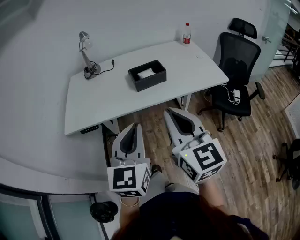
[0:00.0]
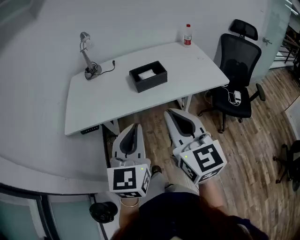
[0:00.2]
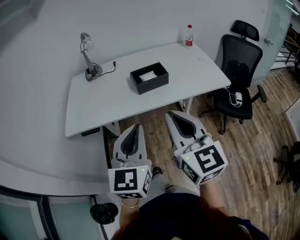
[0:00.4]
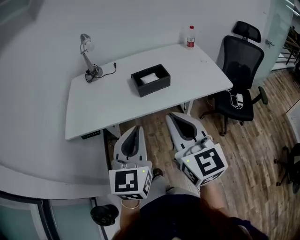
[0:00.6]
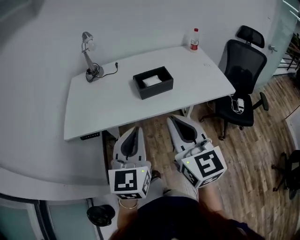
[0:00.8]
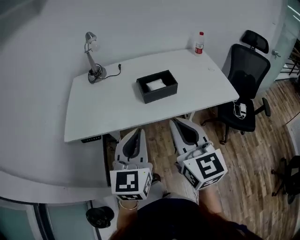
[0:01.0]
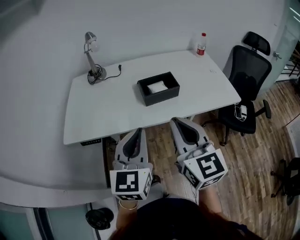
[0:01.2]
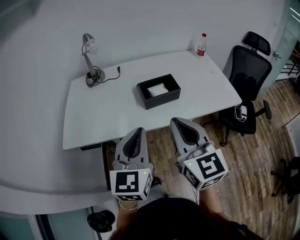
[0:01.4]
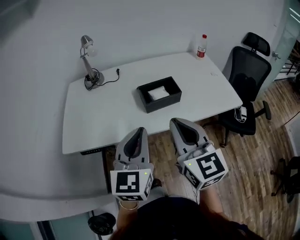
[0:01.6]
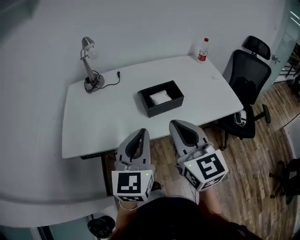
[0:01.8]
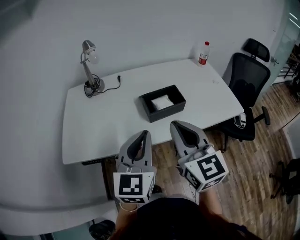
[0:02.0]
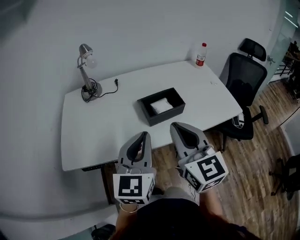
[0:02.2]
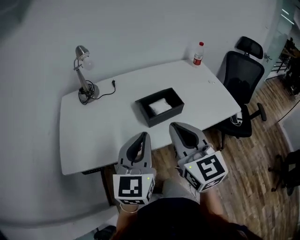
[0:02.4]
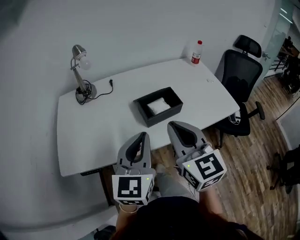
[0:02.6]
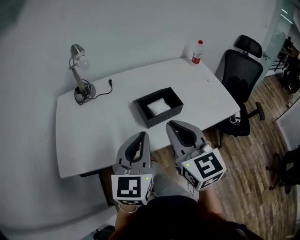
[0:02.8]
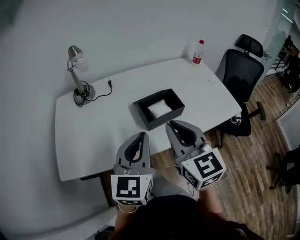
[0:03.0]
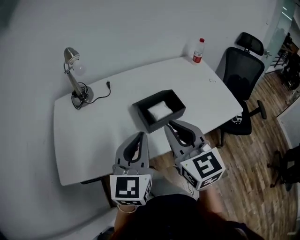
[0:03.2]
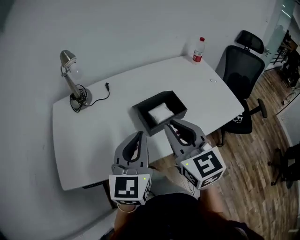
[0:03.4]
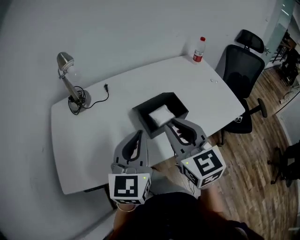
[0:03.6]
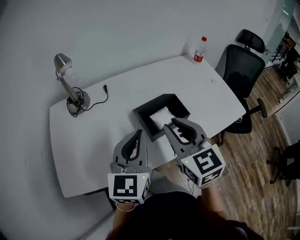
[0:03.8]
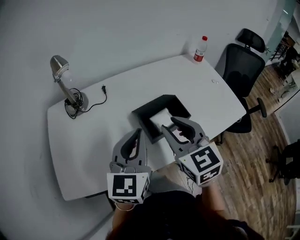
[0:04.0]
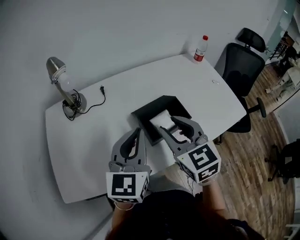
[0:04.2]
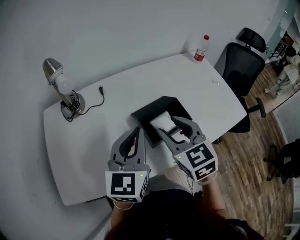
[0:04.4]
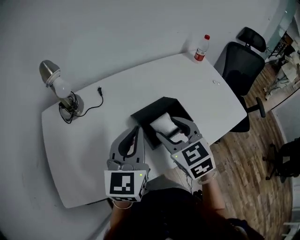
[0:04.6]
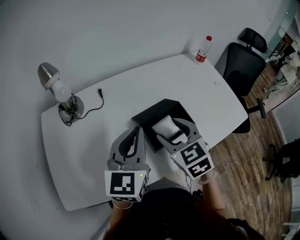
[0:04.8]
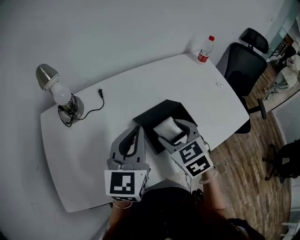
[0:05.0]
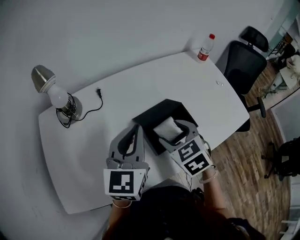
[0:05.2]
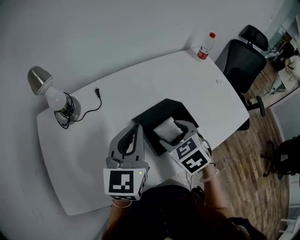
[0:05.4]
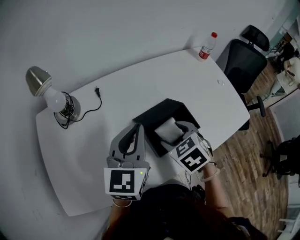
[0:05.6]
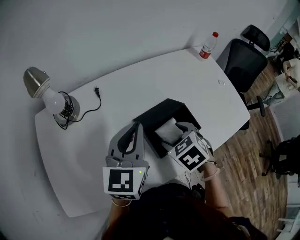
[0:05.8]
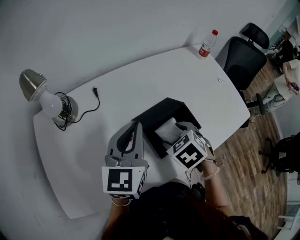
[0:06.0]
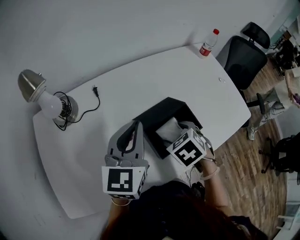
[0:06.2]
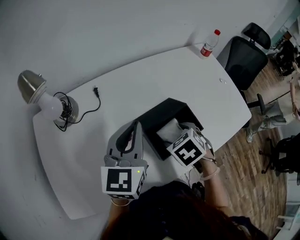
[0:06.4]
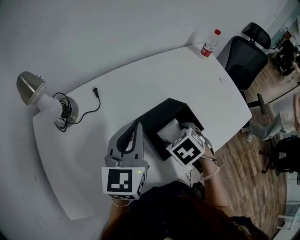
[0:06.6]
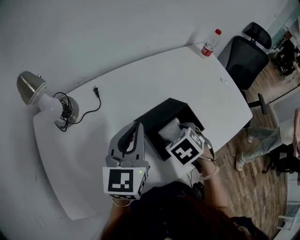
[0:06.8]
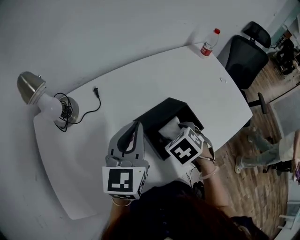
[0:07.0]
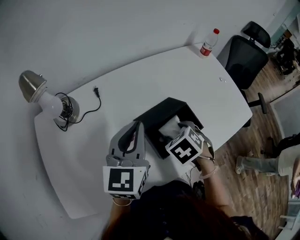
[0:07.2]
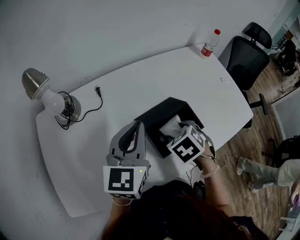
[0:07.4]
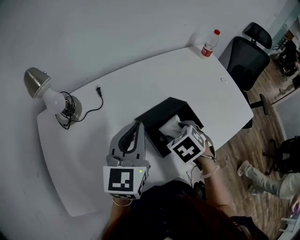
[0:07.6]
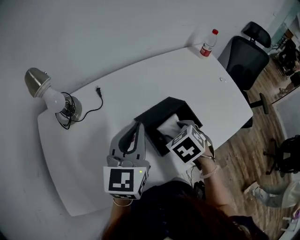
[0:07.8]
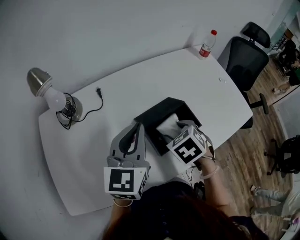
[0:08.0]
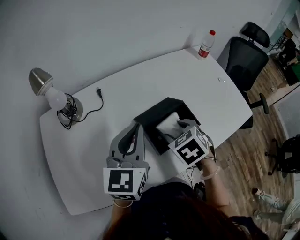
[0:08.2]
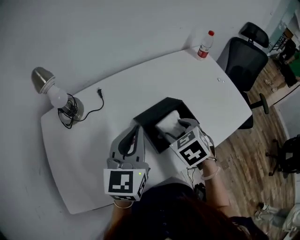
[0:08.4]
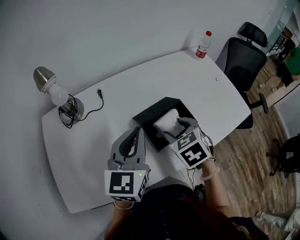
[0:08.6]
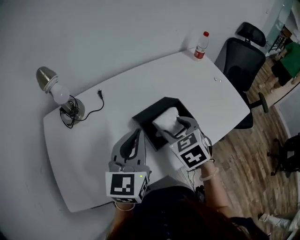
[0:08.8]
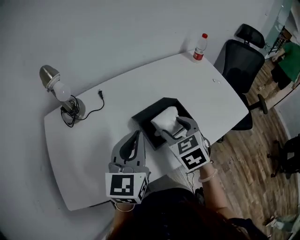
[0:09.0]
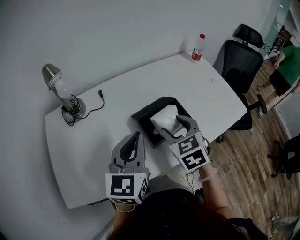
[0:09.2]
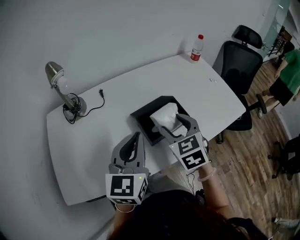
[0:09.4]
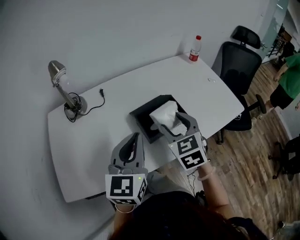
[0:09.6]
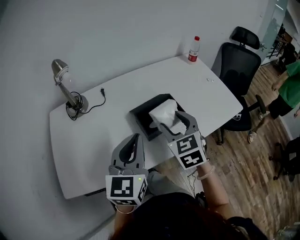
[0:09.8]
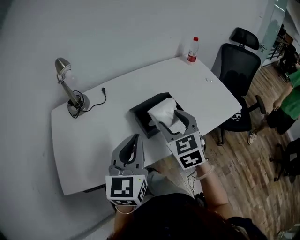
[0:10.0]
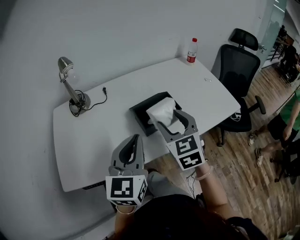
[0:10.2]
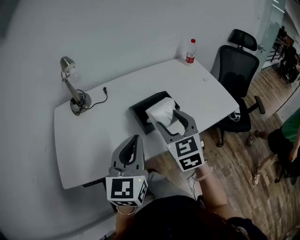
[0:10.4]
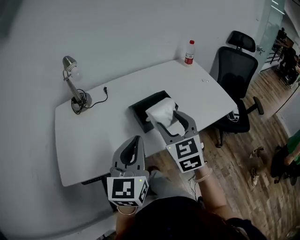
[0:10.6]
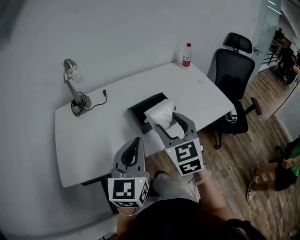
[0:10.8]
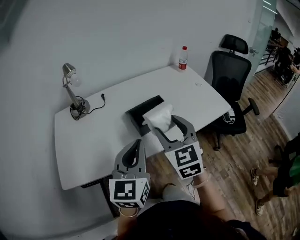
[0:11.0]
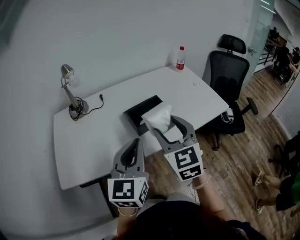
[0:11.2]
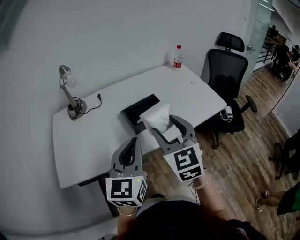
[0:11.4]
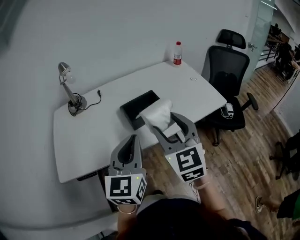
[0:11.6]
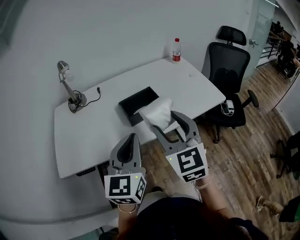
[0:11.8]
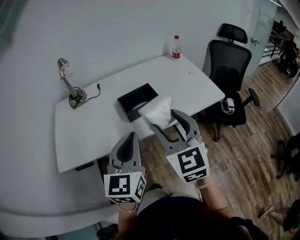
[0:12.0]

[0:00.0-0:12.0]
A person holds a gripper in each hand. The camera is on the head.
0:00.0 to 0:01.6: The two grippers go about 15 cm forward.
0:01.6 to 0:03.0: The two grippers go some 10 cm forward.
0:03.0 to 0:04.4: The left gripper travels forward by some 15 cm. Meanwhile the right gripper is displaced forward and downward by about 15 cm, and opens its fingers.
0:04.4 to 0:06.0: The right gripper shifts approximately 15 cm downward, and angles its fingers downward, by some 40 degrees. Meanwhile the left gripper moves forward, about 10 cm.
0:06.0 to 0:07.6: The grippers stay close to where they were, moving slightly.
0:07.6 to 0:09.0: The left gripper is displaced backward by about 5 cm; the right gripper travels upward by roughly 5 cm, and swivels about 30 degrees.
0:09.0 to 0:10.4: The left gripper shifts about 15 cm backward. Meanwhile the right gripper heads backward and upward, covering about 10 cm, and turns by about 20 degrees.
0:10.4 to 0:12.0: The right gripper goes roughly 15 cm backward, to the right and upward, while the left gripper shifts approximately 10 cm backward and to the right.

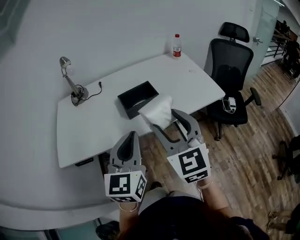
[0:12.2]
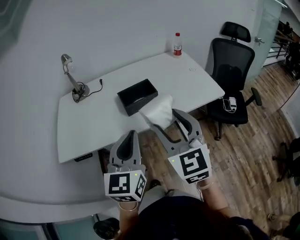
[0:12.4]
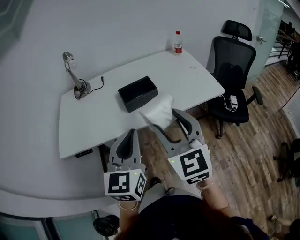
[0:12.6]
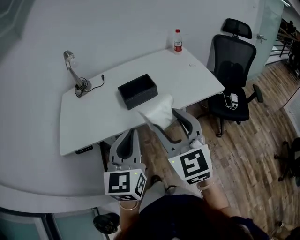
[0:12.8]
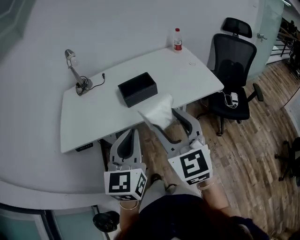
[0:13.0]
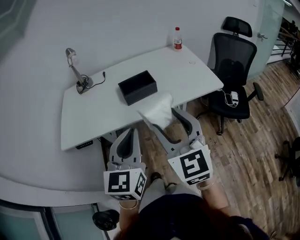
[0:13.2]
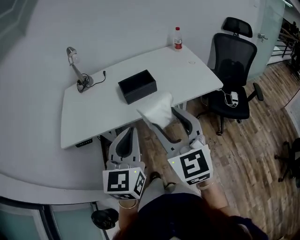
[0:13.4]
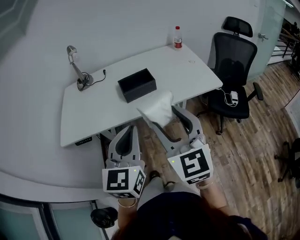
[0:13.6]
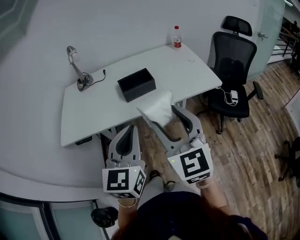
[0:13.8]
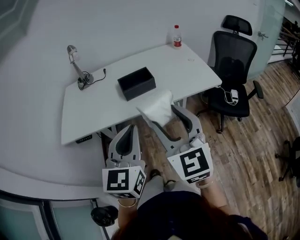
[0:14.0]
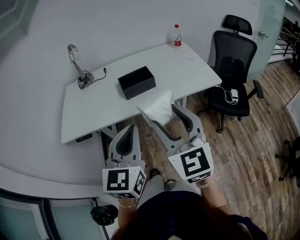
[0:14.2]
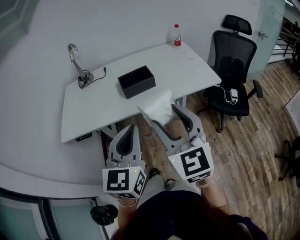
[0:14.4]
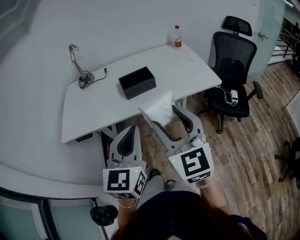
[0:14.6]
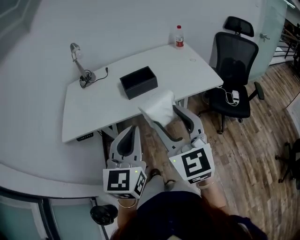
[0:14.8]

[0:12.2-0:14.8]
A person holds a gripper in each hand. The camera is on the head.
0:12.2 to 0:13.4: The two grippers go roughly 10 cm backward.
0:13.4 to 0:14.8: The grippers move only a little.

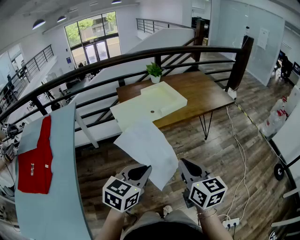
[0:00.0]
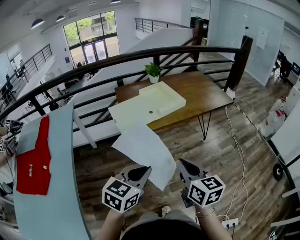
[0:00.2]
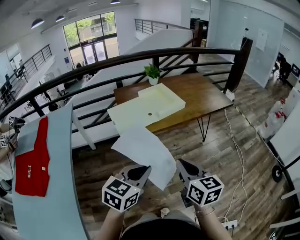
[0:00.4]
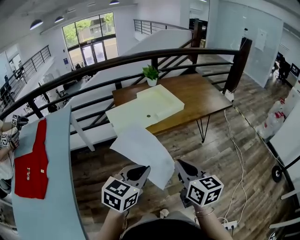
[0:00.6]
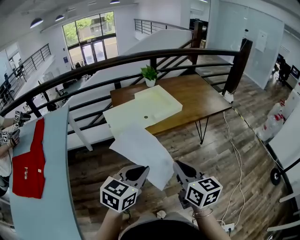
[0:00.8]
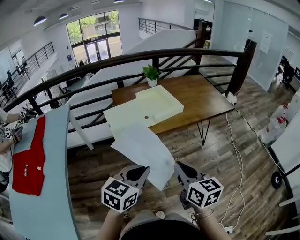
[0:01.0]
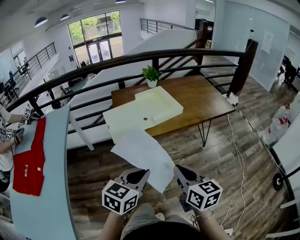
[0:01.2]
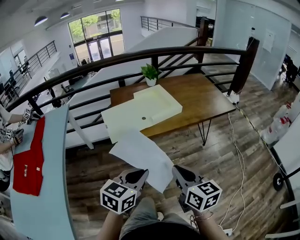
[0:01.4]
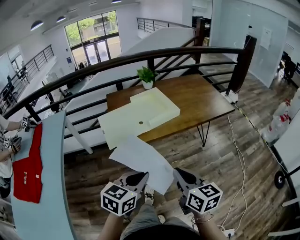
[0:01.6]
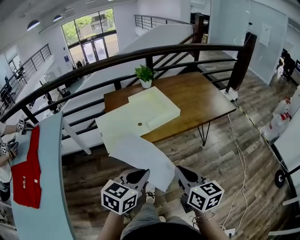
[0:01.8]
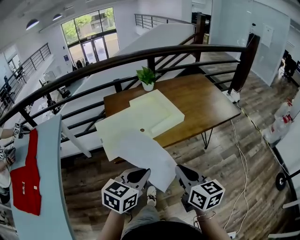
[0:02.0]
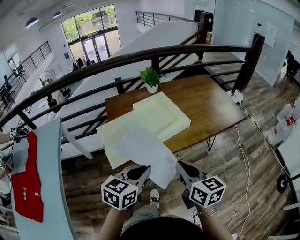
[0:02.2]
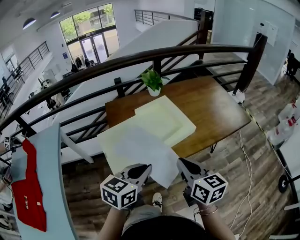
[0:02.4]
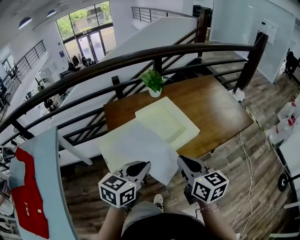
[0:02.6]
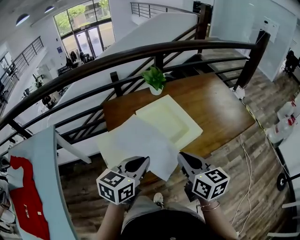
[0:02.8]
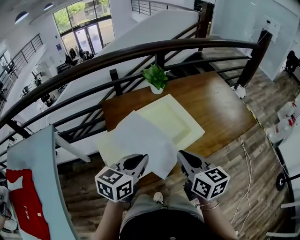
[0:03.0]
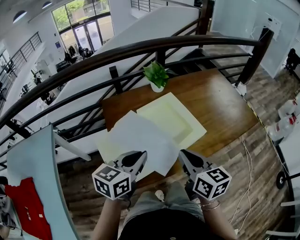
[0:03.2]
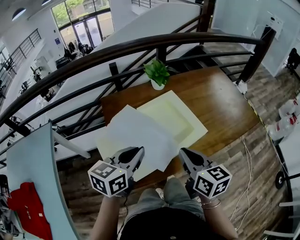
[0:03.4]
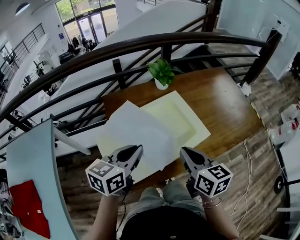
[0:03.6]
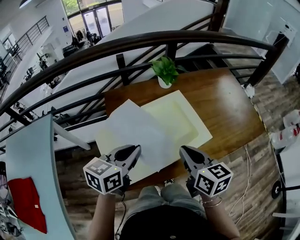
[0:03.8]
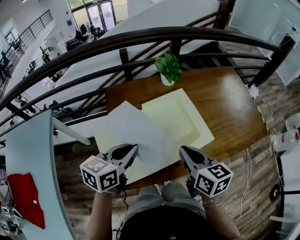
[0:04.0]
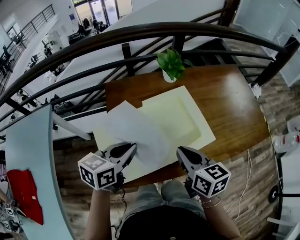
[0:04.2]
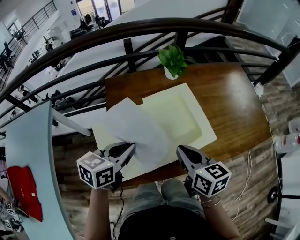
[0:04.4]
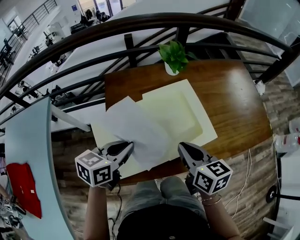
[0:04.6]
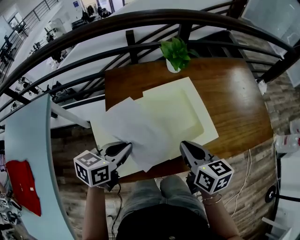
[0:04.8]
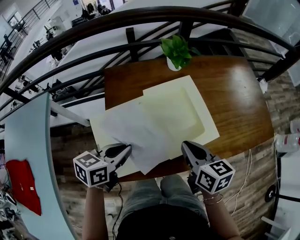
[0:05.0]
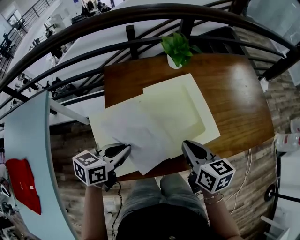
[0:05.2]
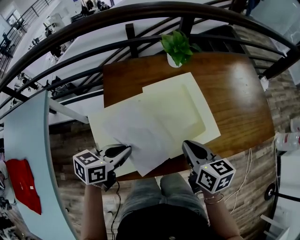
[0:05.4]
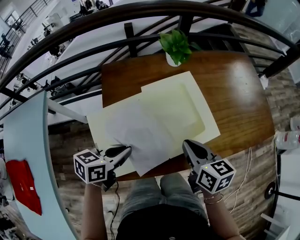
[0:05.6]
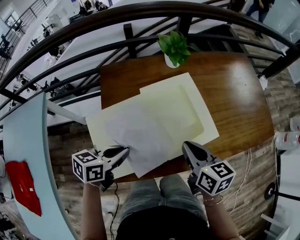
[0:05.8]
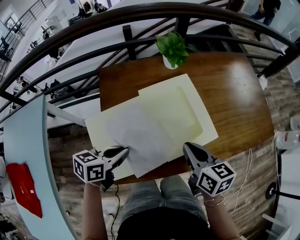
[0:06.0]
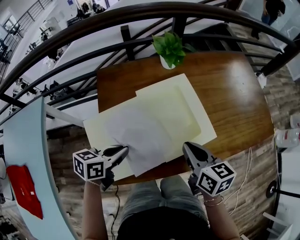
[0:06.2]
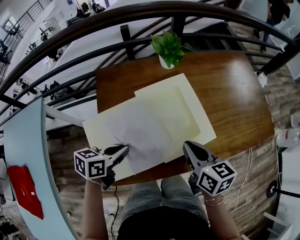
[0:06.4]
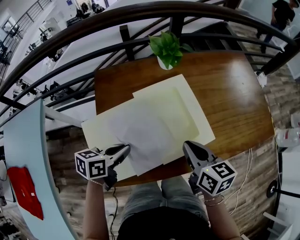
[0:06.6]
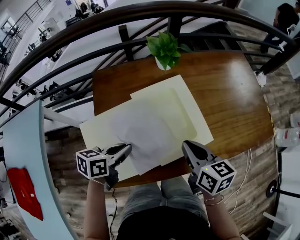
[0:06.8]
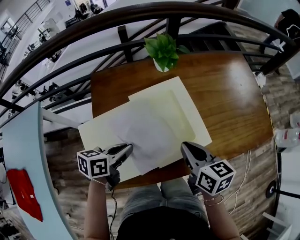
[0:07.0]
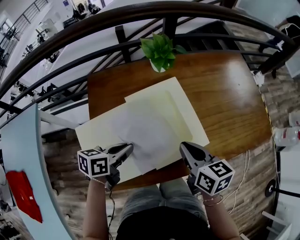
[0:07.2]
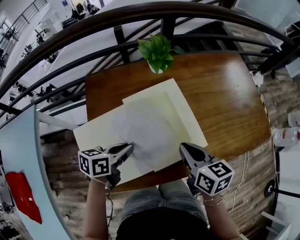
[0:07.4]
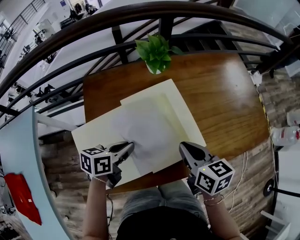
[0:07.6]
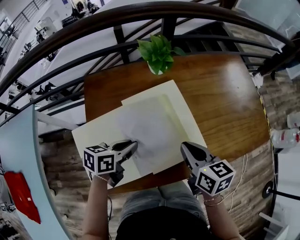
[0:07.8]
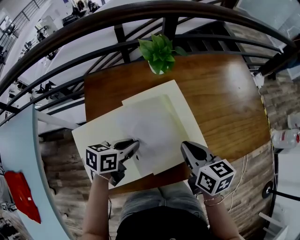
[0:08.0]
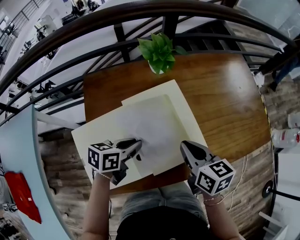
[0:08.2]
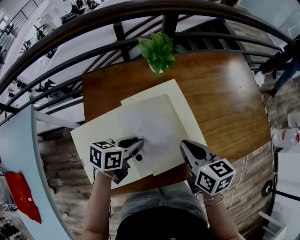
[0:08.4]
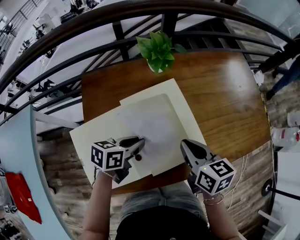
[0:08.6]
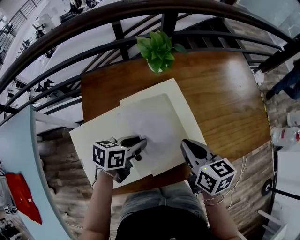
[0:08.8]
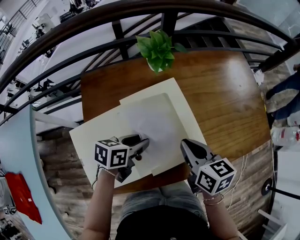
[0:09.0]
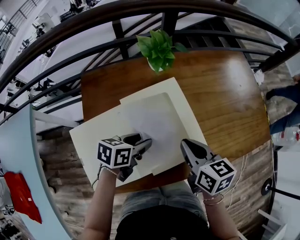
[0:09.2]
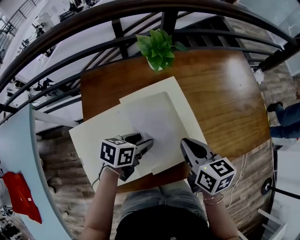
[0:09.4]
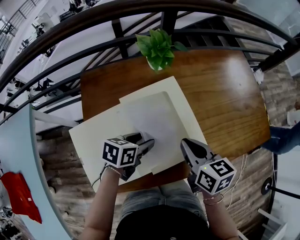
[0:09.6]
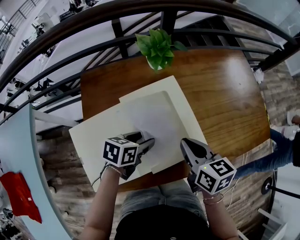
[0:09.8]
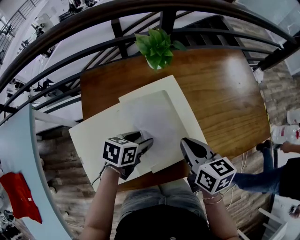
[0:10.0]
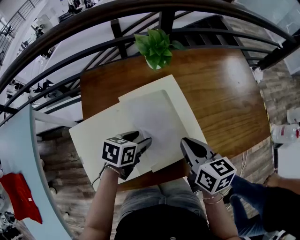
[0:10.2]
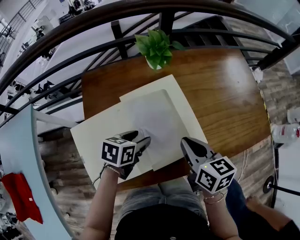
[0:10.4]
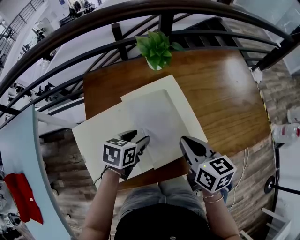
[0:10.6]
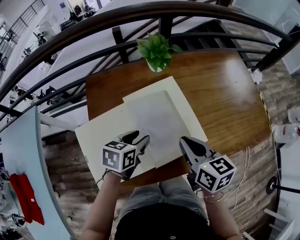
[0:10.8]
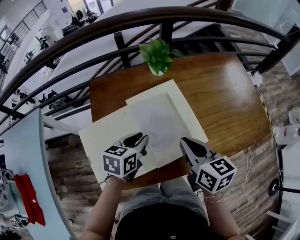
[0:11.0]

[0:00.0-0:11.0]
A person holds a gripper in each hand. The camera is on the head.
0:00.0 to 0:01.6: Both grippers move forward and to the right, some 10 cm.
0:01.6 to 0:03.2: The left gripper shifts roughly 35 cm forward and to the left. Meanwhile the right gripper travels forward by approximately 30 cm.
0:03.2 to 0:04.8: The left gripper shifts about 5 cm downward. Meanwhile the right gripper travels forward and downward by roughly 10 cm.
0:04.8 to 0:06.2: The left gripper travels downward by approximately 5 cm.
0:06.2 to 0:07.8: The right gripper shifts by some 5 cm, while the left gripper moves forward and to the right, approximately 10 cm.
0:07.8 to 0:09.4: The left gripper ends up about 5 cm from where it was, and opens its fingers.
0:09.4 to 0:11.0: The left gripper travels upward by roughly 5 cm, and closes its fingers.
